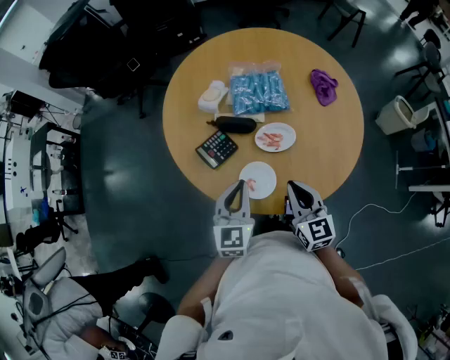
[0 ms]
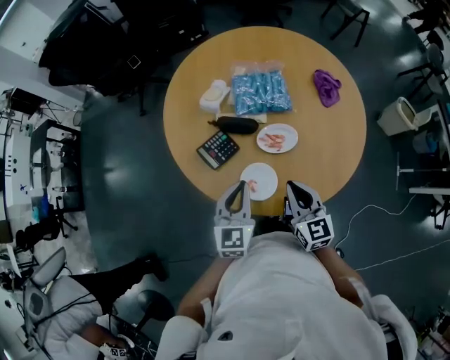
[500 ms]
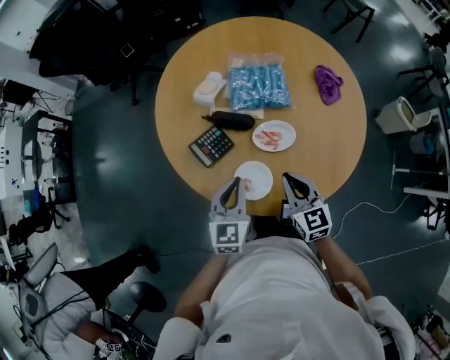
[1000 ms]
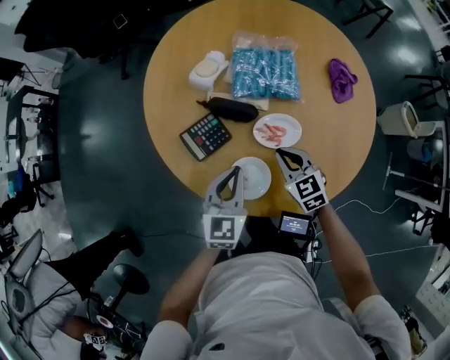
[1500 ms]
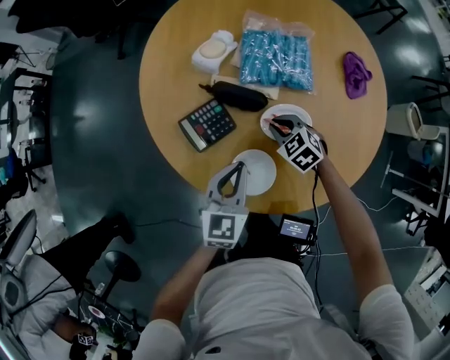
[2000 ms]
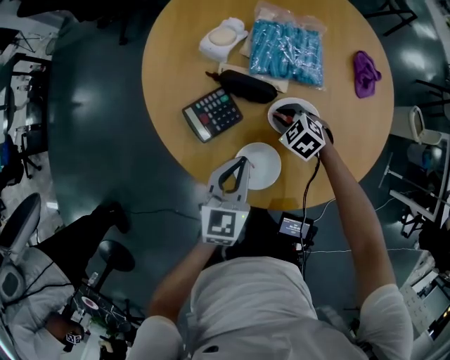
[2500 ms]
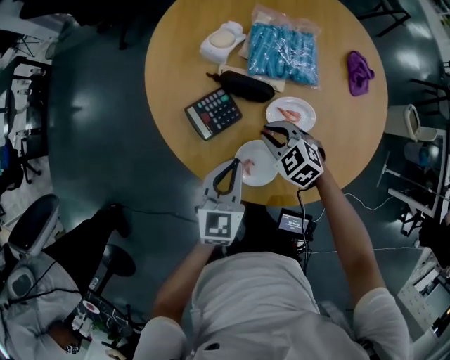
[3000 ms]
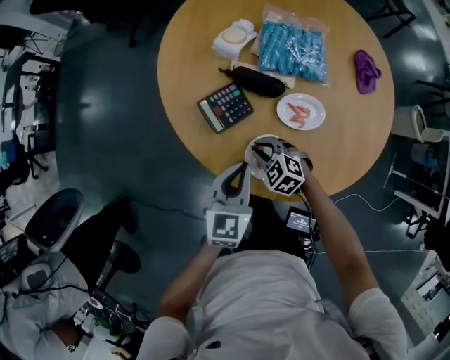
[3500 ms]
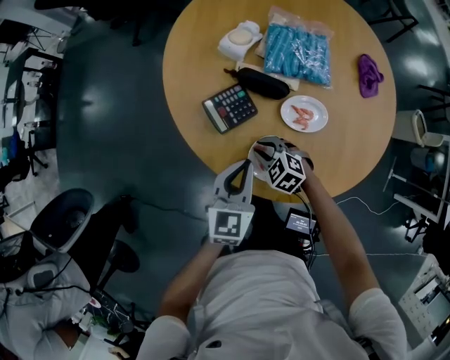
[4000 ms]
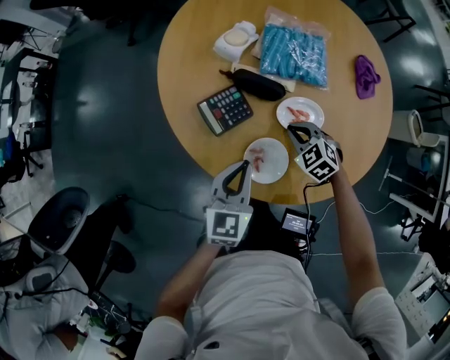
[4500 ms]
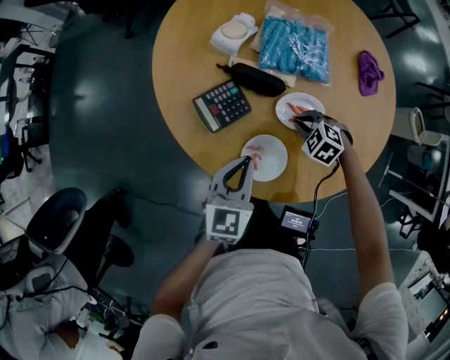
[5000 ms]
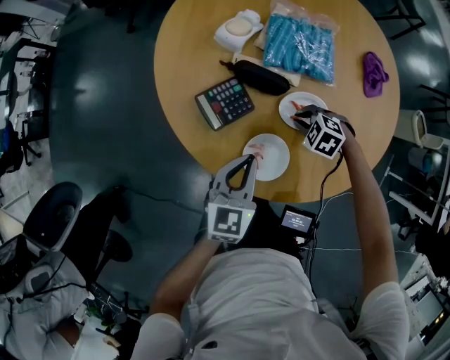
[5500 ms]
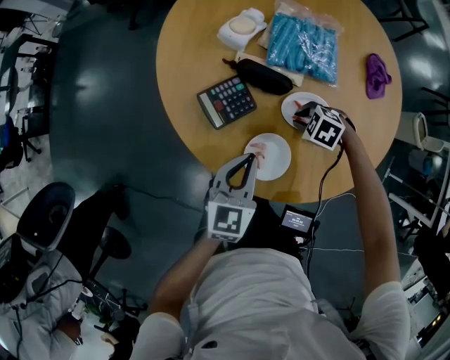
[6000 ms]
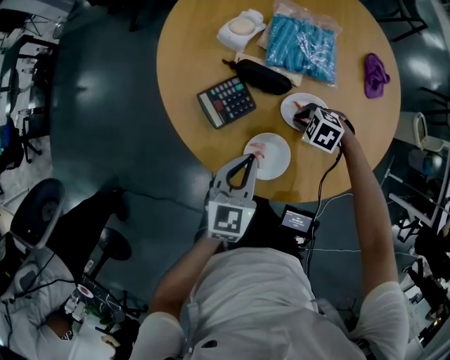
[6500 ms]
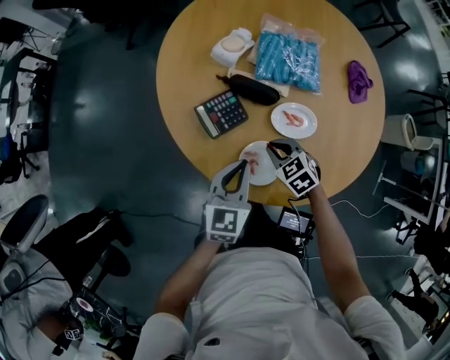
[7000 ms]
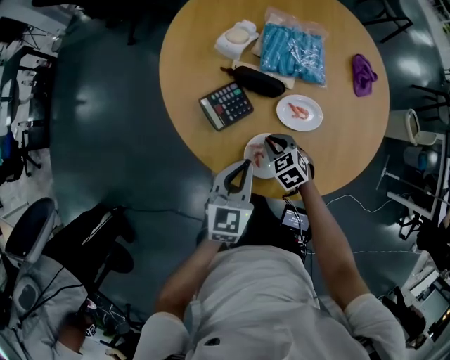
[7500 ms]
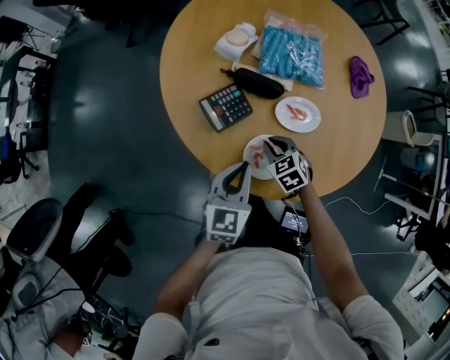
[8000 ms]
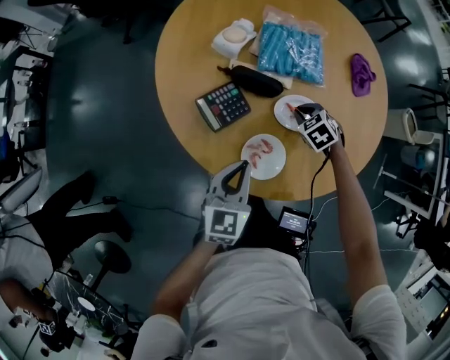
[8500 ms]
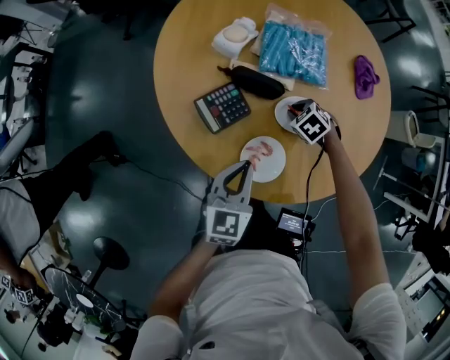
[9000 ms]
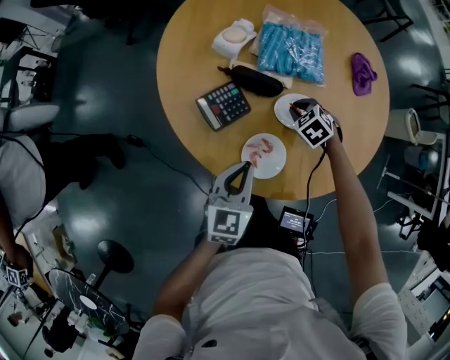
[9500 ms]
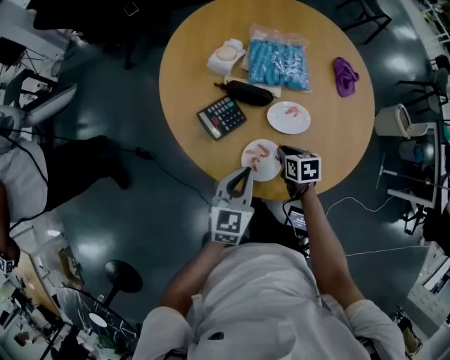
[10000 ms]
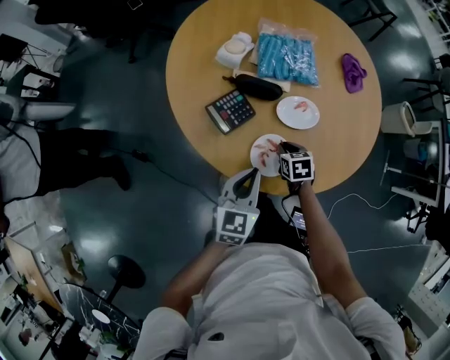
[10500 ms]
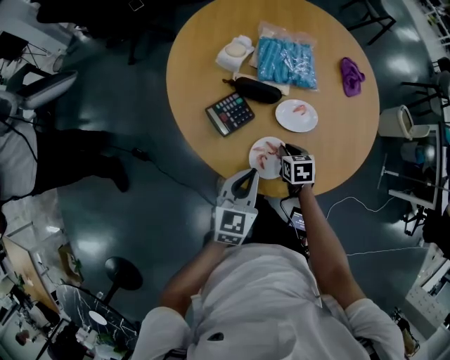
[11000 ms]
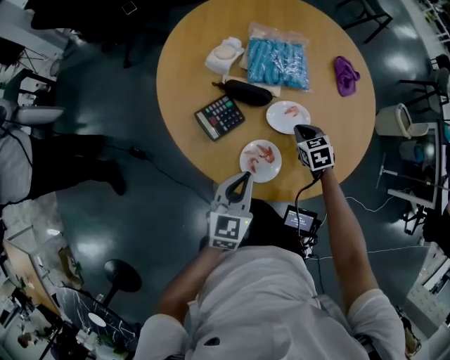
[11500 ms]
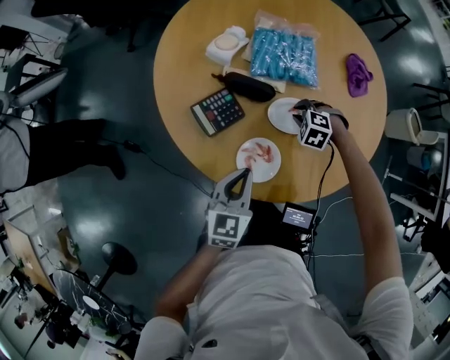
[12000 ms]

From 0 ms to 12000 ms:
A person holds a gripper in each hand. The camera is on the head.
From 0 ms to 2000 ms: The left gripper shifts roughly 10 cm downward and forward. The right gripper shifts some 30 cm downward and forward, and tilts its fingers roughly 40 degrees downward.
From 2000 ms to 4000 ms: The right gripper heads to the left and backward, covering about 15 cm, while the left gripper is displaced to the left by approximately 5 cm.
From 4000 ms to 6000 ms: The right gripper moves about 15 cm, and rotates roughly 20 degrees.
From 6000 ms to 8000 ms: The right gripper changes place by roughly 10 cm, and rotates some 40 degrees.
From 8000 ms to 10000 ms: The right gripper changes its angle by approximately 40 degrees.
From 10000 ms to 12000 ms: The right gripper ends up approximately 15 cm from where it was, and twists some 80 degrees counterclockwise, seen from behind.

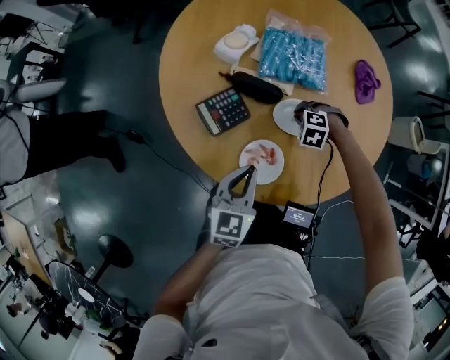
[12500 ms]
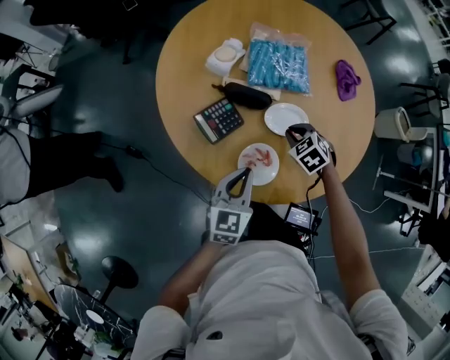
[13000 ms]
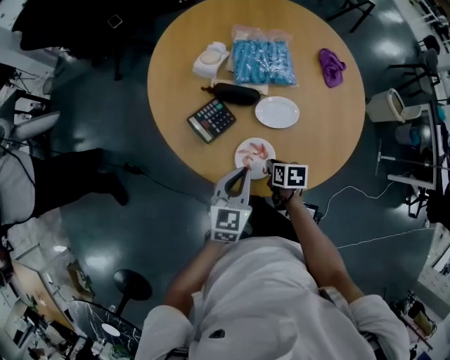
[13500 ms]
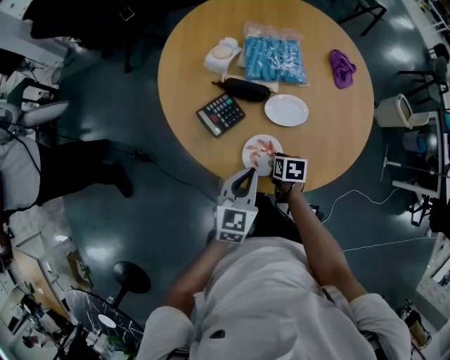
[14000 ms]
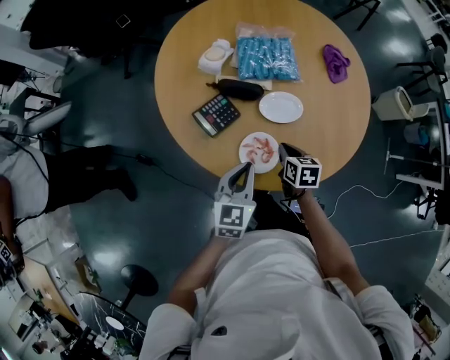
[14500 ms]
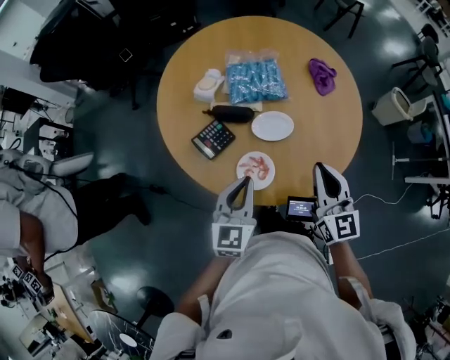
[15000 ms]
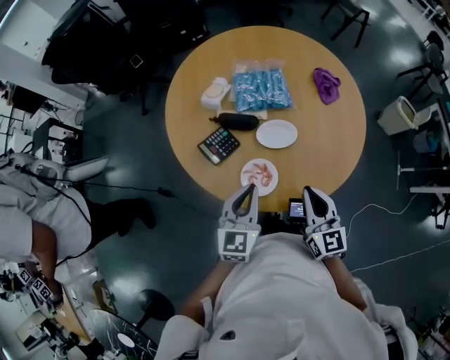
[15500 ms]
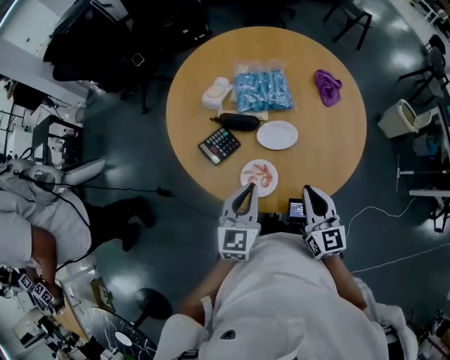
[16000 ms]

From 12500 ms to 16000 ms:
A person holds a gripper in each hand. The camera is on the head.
From 12500 ms to 14500 ms: The right gripper goes up and down, about 10 cm each way, reversing 2 times, and twists about 90 degrees clockwise, seen from behind.
From 14500 ms to 16000 ms: The right gripper moves upward, about 20 cm, and angles its fingers upward, by some 40 degrees. Meanwhile the left gripper goes approximately 10 cm upward.

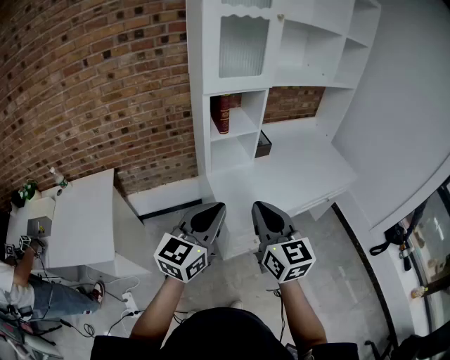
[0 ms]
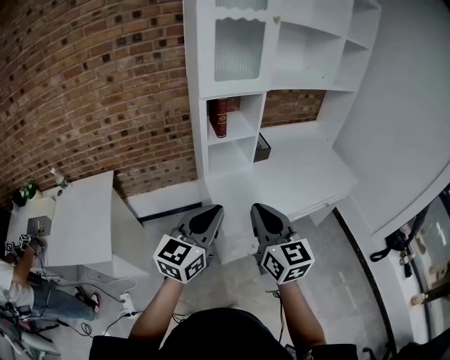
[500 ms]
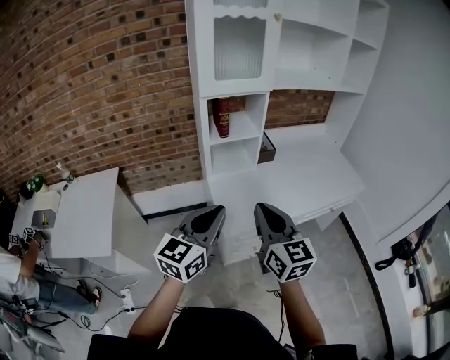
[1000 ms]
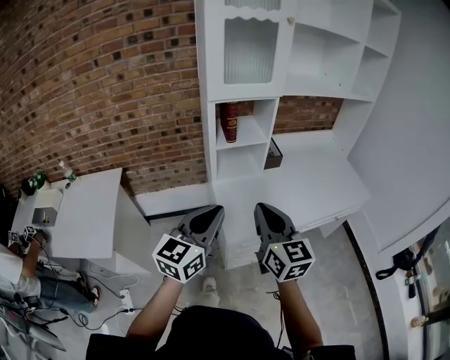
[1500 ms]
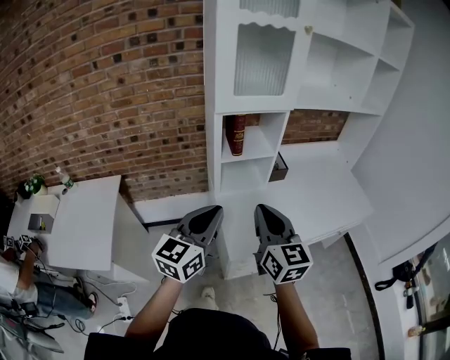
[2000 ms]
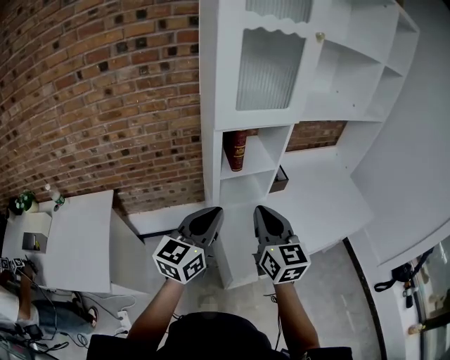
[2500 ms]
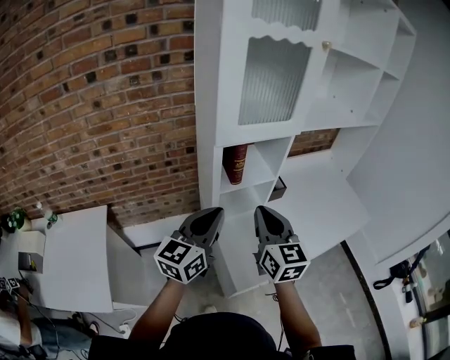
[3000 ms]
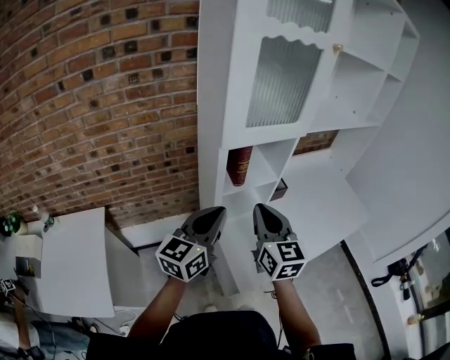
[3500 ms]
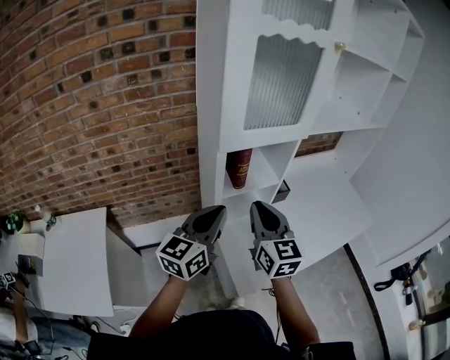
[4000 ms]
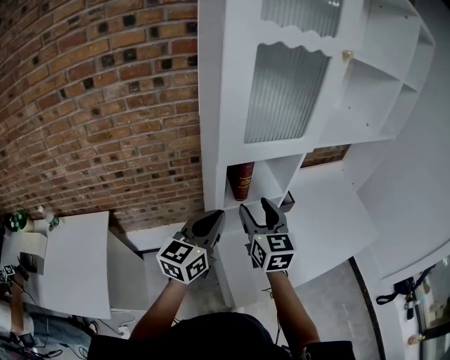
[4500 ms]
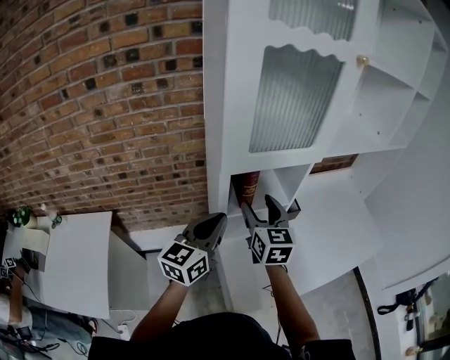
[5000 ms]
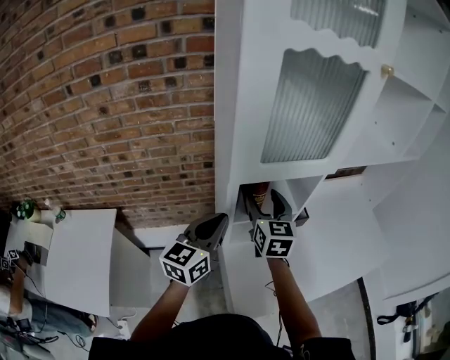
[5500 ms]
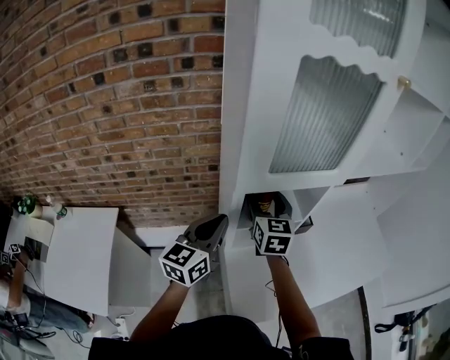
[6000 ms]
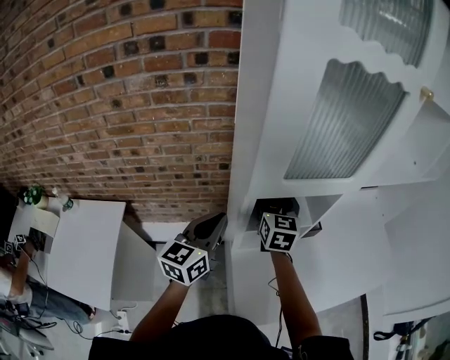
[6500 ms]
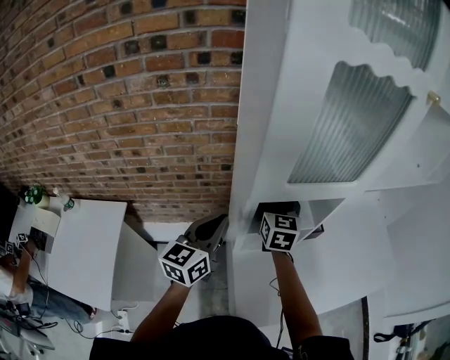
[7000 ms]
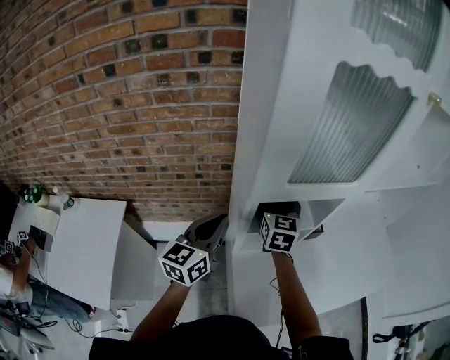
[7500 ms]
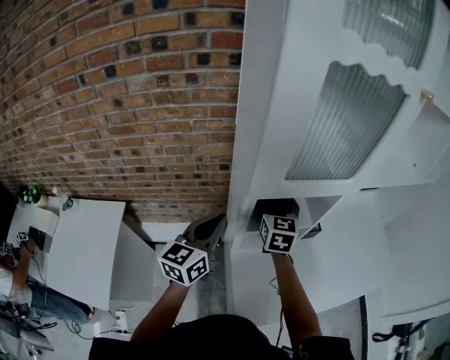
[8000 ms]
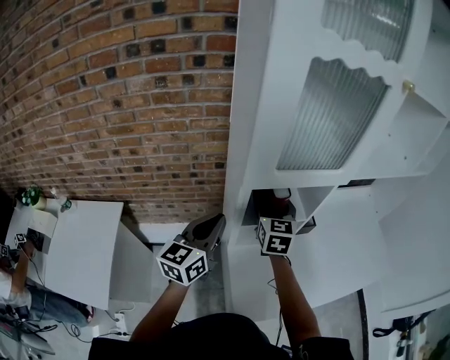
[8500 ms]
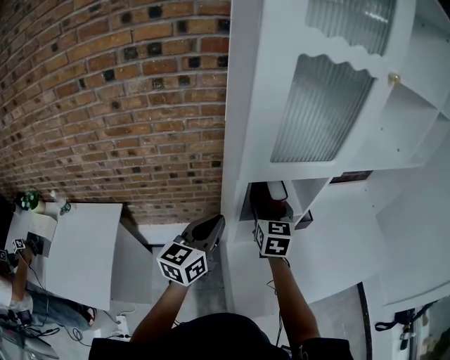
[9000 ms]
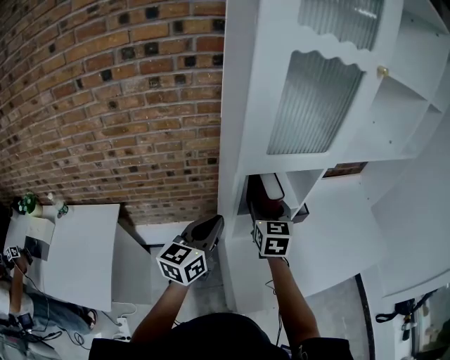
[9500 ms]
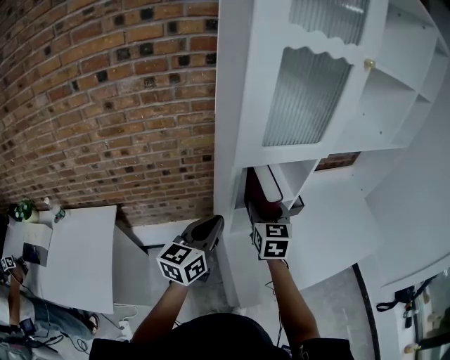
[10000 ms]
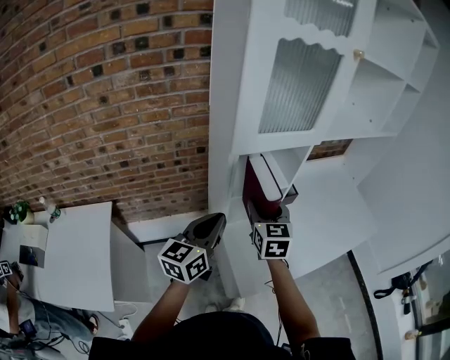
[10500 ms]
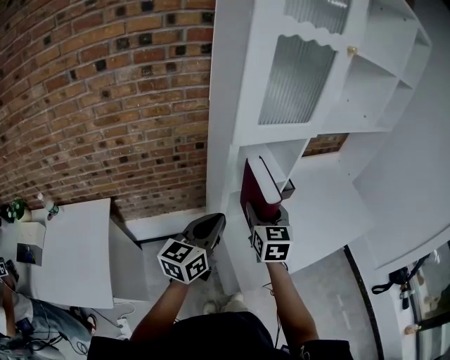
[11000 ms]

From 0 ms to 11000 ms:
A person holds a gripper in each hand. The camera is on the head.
From 0 ms to 2000 ms: Both grippers travel together forward, about 10 cm.
From 2000 ms to 3500 ms: The two grippers go about 15 cm forward and to the left.
From 3500 ms to 5500 ms: The right gripper heads forward, covering approximately 20 cm, and opens up. The left gripper moves forward, approximately 10 cm.
From 5500 ms to 7500 ms: The right gripper shifts roughly 5 cm forward. Meanwhile the left gripper ends up roughly 5 cm from where it was.
From 7500 ms to 9000 ms: The right gripper is displaced backward by some 5 cm, while the left gripper changes place by approximately 5 cm.
From 9000 ms to 11000 ms: The two grippers go about 10 cm backward.
